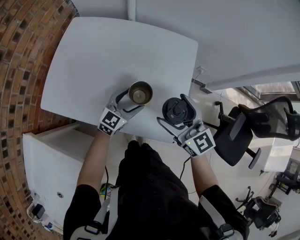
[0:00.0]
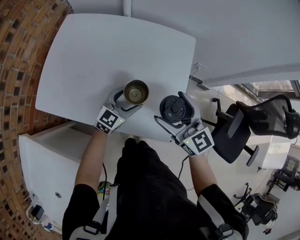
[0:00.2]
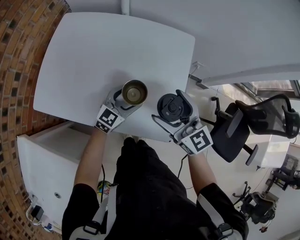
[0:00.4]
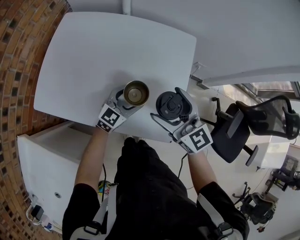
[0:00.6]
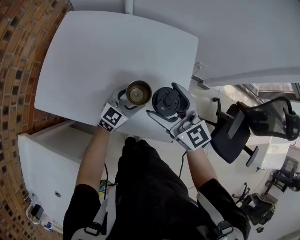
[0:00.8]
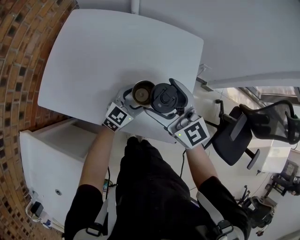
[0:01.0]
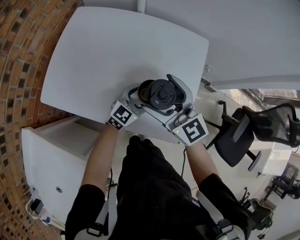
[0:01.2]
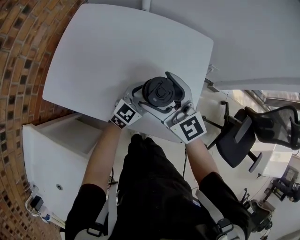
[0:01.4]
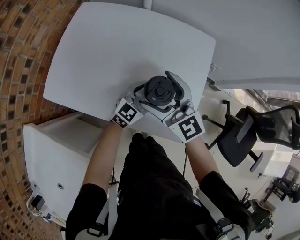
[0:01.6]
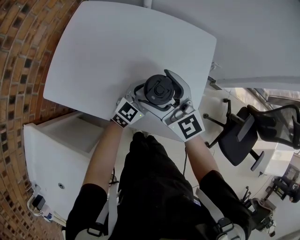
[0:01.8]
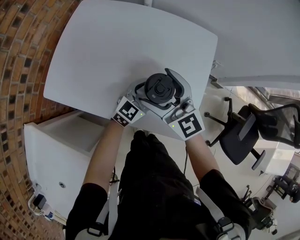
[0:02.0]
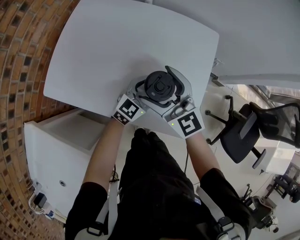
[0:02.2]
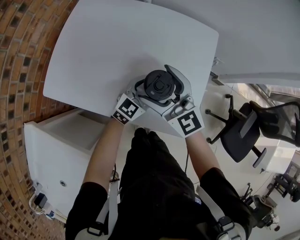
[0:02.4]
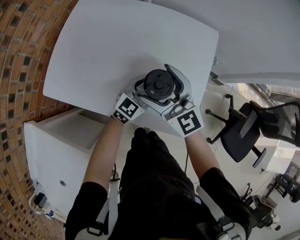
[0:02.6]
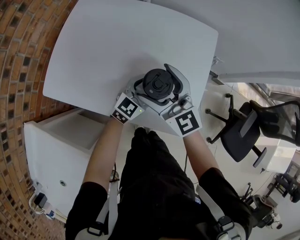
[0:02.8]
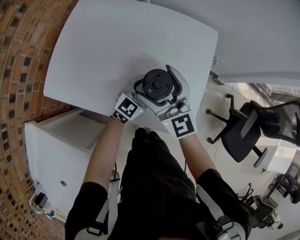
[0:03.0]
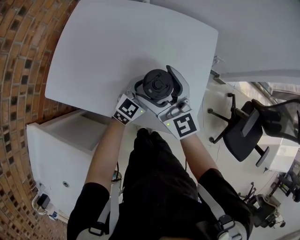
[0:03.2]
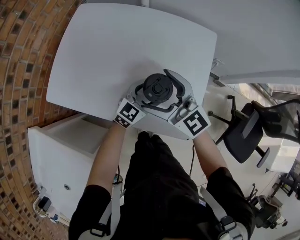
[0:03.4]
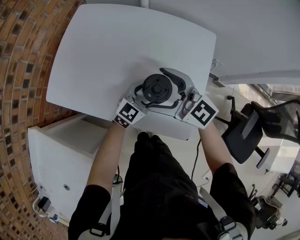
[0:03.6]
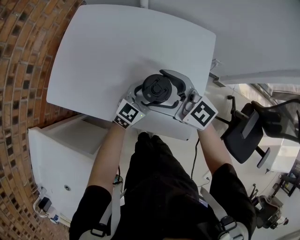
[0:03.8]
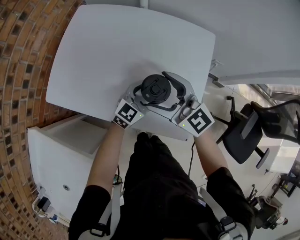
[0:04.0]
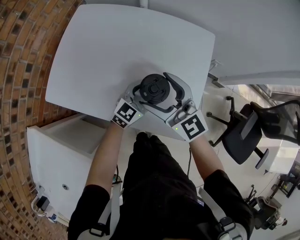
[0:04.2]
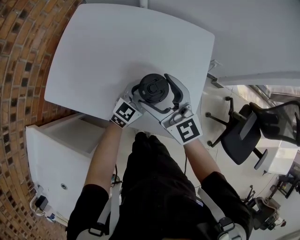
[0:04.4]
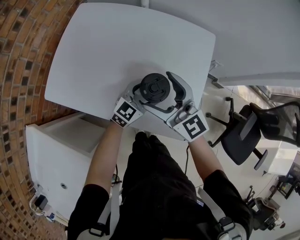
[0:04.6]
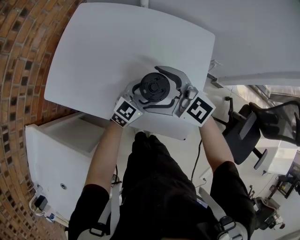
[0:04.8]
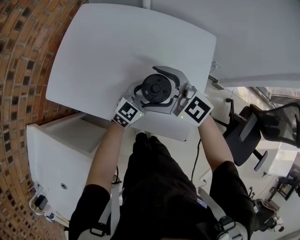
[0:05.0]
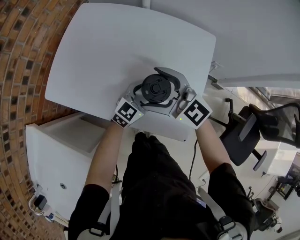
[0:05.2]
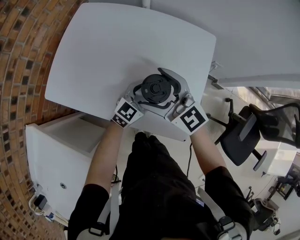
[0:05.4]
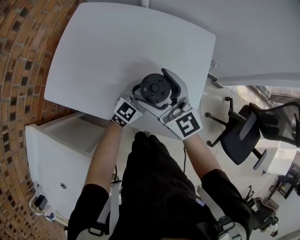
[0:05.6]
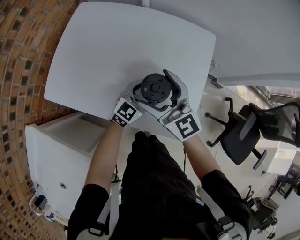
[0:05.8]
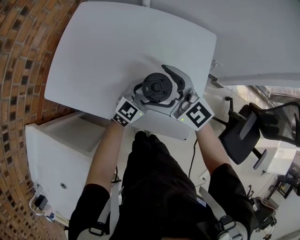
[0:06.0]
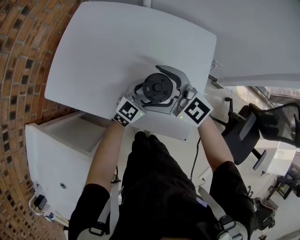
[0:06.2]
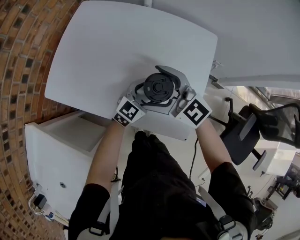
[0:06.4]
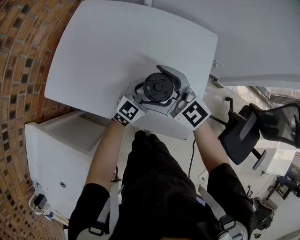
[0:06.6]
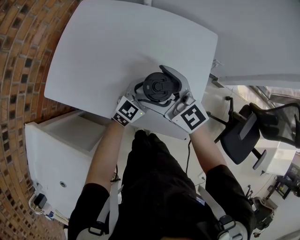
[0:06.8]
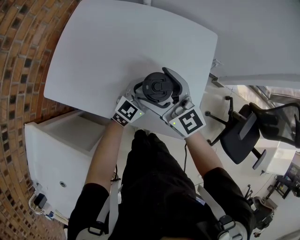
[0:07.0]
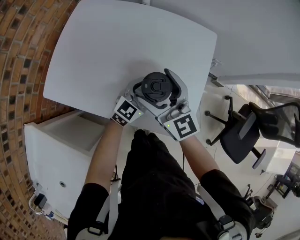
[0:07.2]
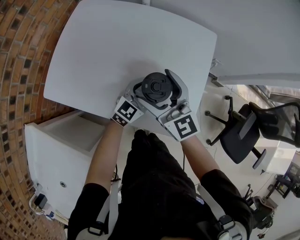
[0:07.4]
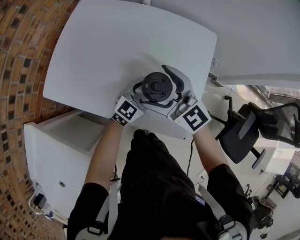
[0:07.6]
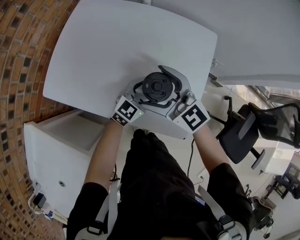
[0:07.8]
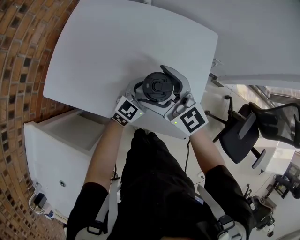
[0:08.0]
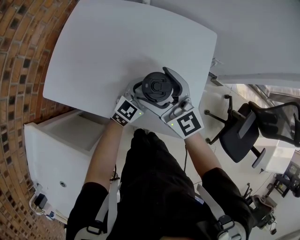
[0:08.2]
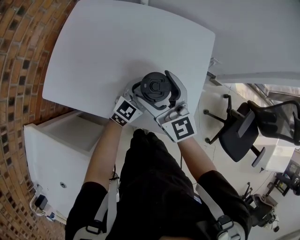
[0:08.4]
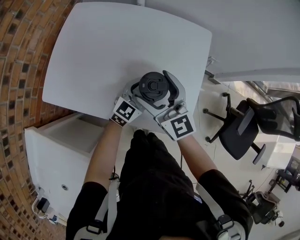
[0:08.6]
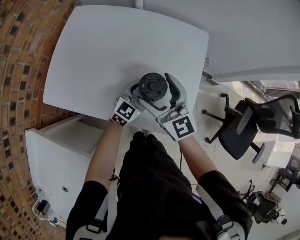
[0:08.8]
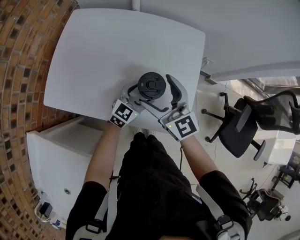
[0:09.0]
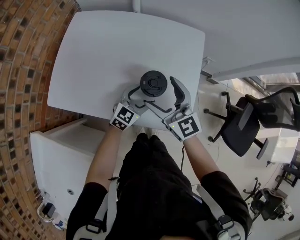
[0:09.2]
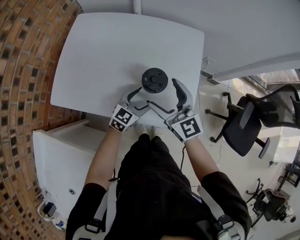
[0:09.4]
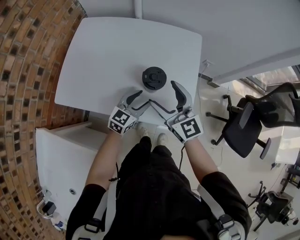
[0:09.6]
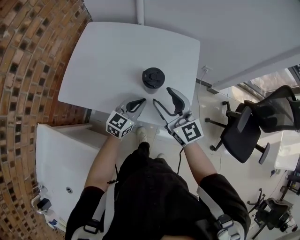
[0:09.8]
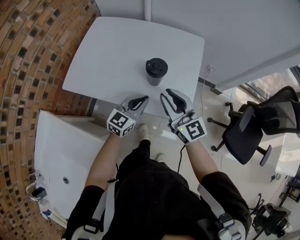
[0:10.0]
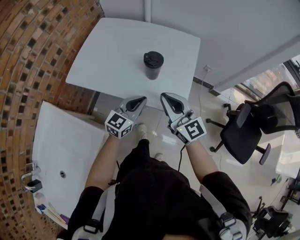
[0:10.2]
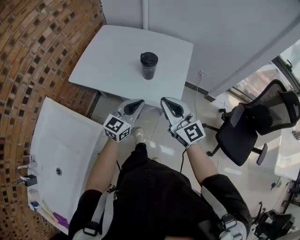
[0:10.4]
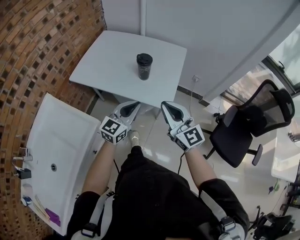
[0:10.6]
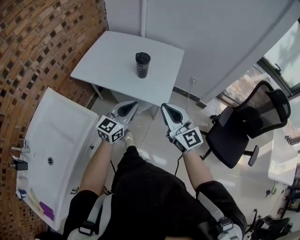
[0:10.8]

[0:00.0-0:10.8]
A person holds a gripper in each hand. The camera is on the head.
0:00.0 to 0:01.6: The right gripper moves to the left, approximately 10 cm.
0:01.6 to 0:03.0: The grippers make only small movements.
0:04.6 to 0:06.2: The right gripper changes its angle by roughly 20 degrees.
0:07.8 to 0:09.2: The right gripper swivels about 30 degrees.
0:09.2 to 0:10.8: The left gripper travels backward and upward by about 35 cm, turns by approximately 30 degrees, and closes its fingers; the right gripper heads backward, upward and to the right, covering approximately 35 cm, and closes.

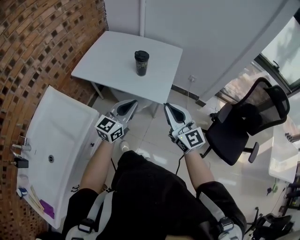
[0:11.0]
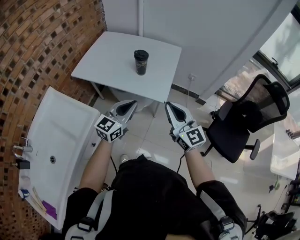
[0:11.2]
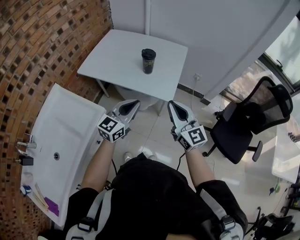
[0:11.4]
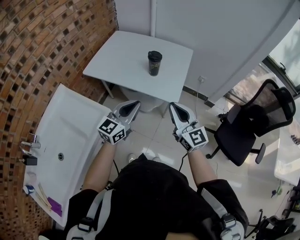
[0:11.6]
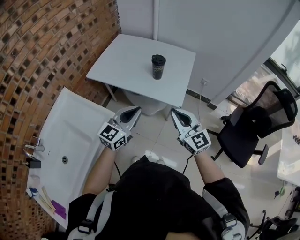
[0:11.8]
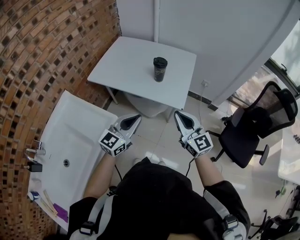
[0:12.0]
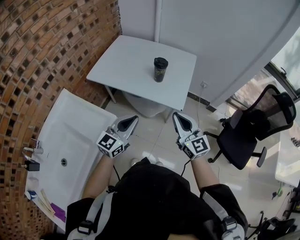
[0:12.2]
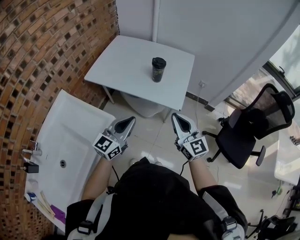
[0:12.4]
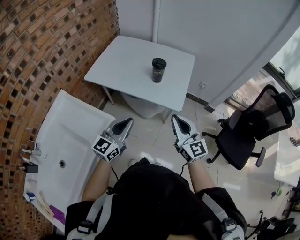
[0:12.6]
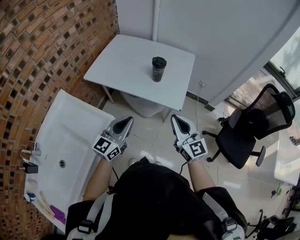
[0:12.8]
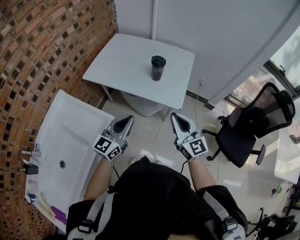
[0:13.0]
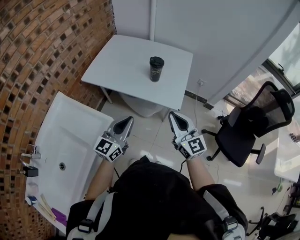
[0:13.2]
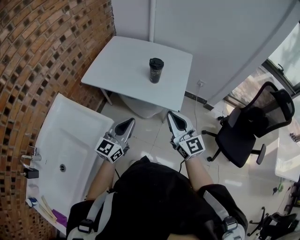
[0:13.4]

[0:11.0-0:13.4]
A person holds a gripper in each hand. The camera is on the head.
0:11.0 to 0:12.2: The left gripper travels to the left by some 10 cm. Meanwhile the right gripper shifts some 5 cm to the left.
0:12.2 to 0:13.4: The grippers stay close to where they were, moving slightly.

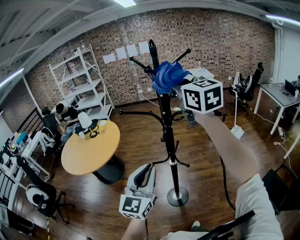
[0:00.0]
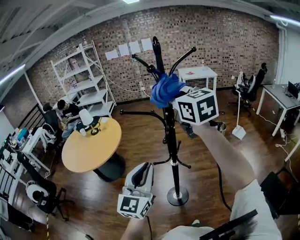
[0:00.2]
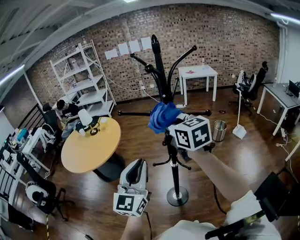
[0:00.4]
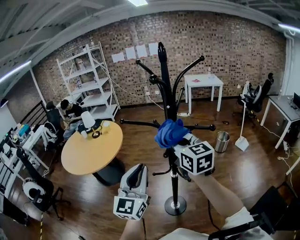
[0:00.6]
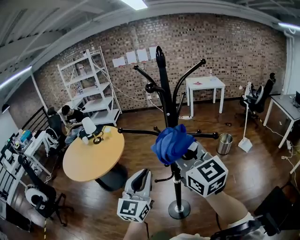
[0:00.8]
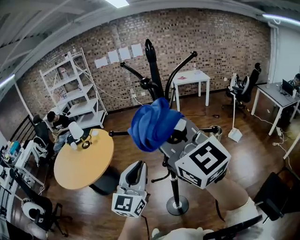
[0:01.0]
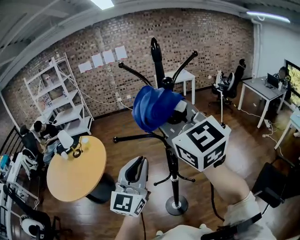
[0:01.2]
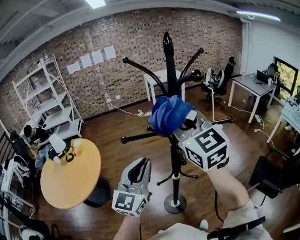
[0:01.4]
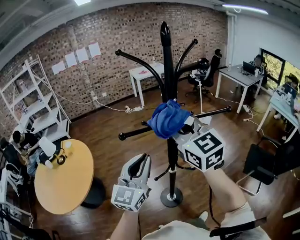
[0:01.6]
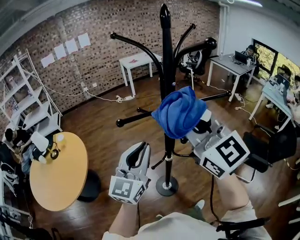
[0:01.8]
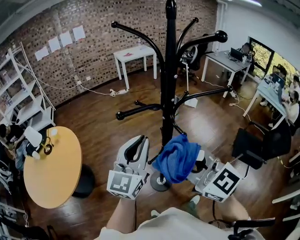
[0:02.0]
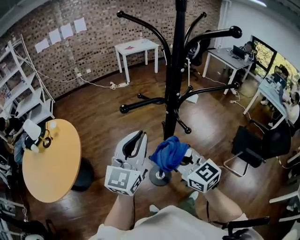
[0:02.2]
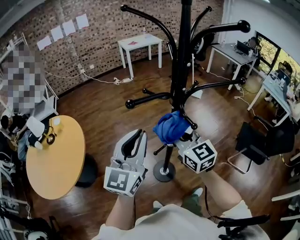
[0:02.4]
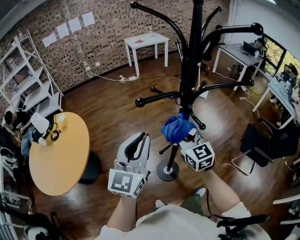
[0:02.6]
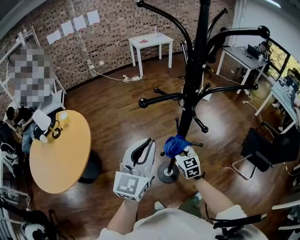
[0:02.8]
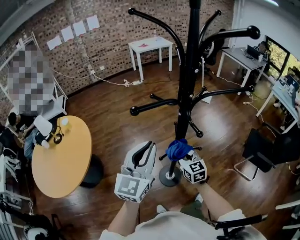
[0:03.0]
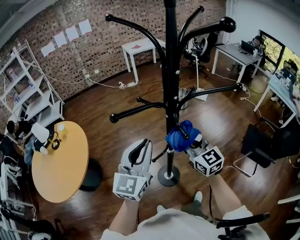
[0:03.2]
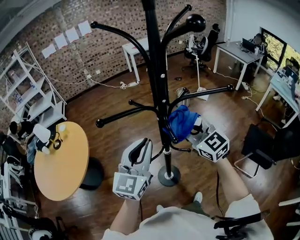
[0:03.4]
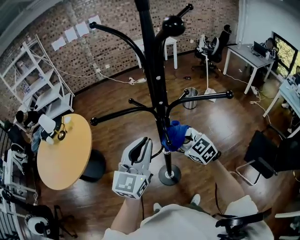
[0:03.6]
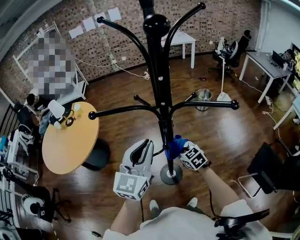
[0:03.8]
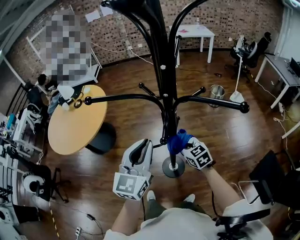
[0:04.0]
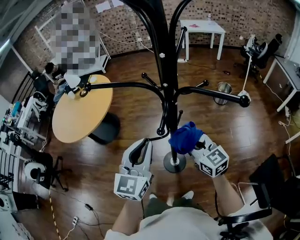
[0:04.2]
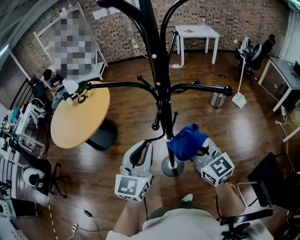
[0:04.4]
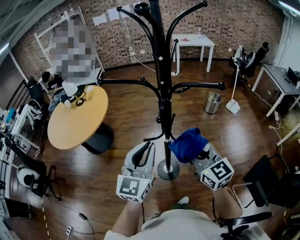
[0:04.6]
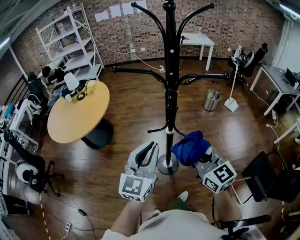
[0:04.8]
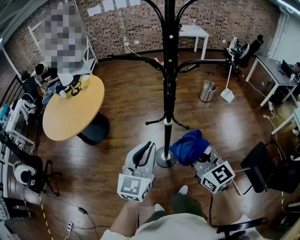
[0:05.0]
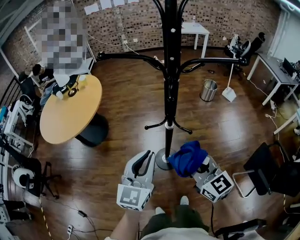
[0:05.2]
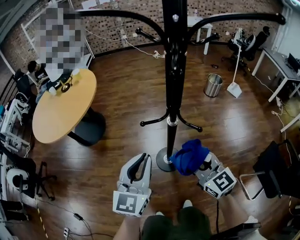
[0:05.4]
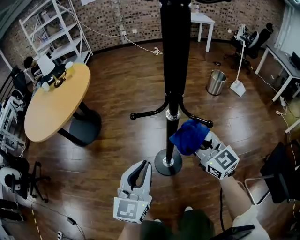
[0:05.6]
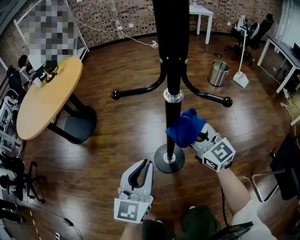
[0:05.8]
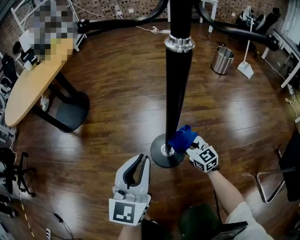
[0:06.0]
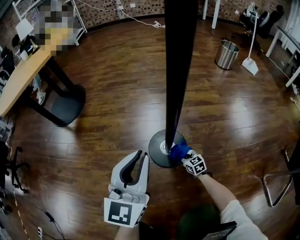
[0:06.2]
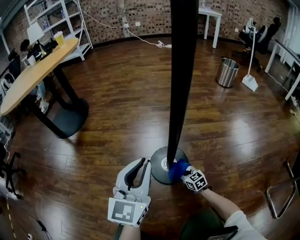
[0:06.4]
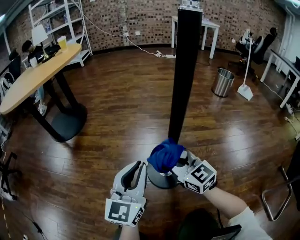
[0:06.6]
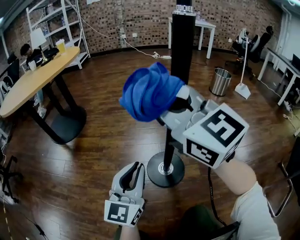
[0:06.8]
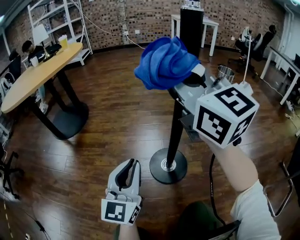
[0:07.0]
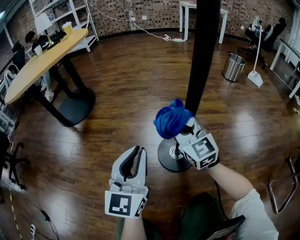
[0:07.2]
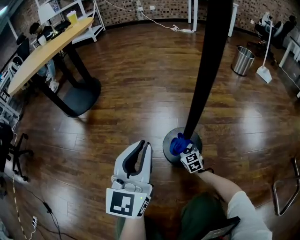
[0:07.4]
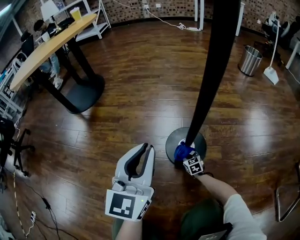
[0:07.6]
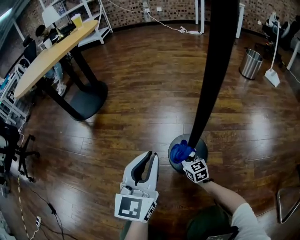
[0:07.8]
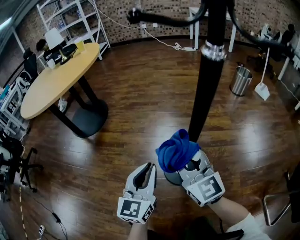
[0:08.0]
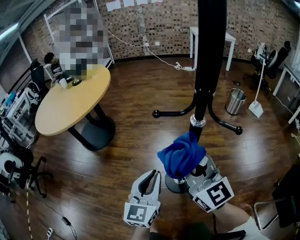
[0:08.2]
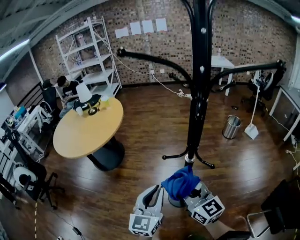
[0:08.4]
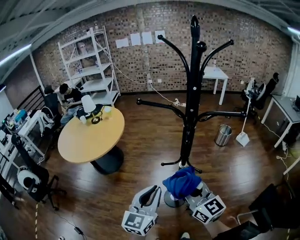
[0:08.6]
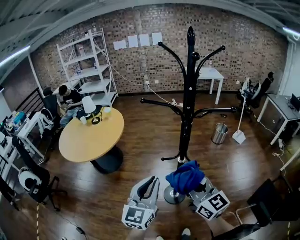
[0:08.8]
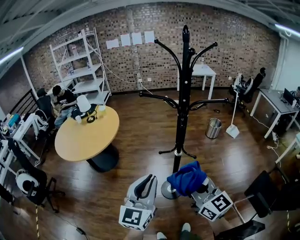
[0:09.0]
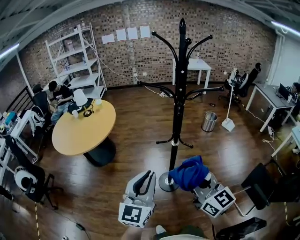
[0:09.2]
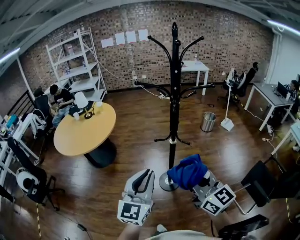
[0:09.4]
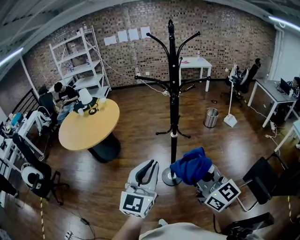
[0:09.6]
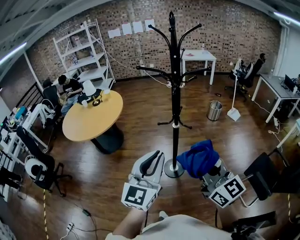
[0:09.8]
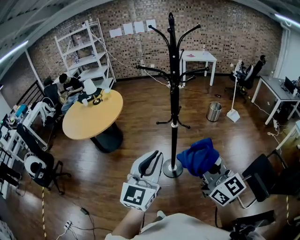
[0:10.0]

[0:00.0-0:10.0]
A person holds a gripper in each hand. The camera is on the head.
0:00.0 to 0:01.4: The right gripper swings up and down, approximately 20 cm each way, with 2 reversals, while the left gripper moves forward, roughly 20 cm.
0:01.4 to 0:02.8: The left gripper goes about 5 cm downward; the right gripper moves up and down over about 40 cm, changing direction 2 times, and changes its angle by approximately 30 degrees.
0:02.8 to 0:04.2: The right gripper goes up and down, roughly 25 cm each way, reversing 2 times, and changes its angle by some 40 degrees. Meanwhile the left gripper moves approximately 10 cm, and swivels roughly 30 degrees.
0:04.2 to 0:05.8: The two grippers go roughly 35 cm downward.
0:05.8 to 0:07.2: The left gripper heads downward, covering some 20 cm. The right gripper moves up and down over roughly 70 cm, changing direction 2 times.
0:07.2 to 0:08.6: The two grippers go about 60 cm upward.
0:08.6 to 0:10.0: The grippers both shift backward and upward by roughly 25 cm.
